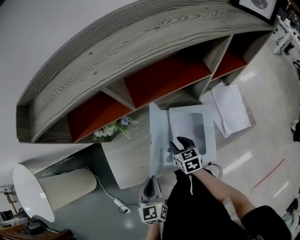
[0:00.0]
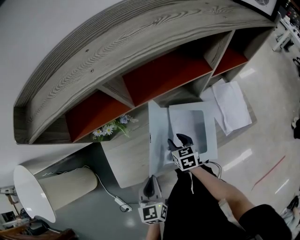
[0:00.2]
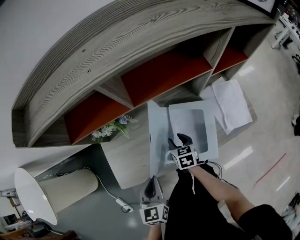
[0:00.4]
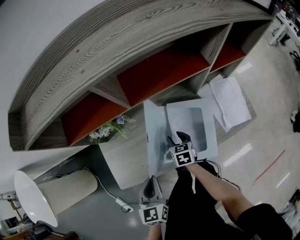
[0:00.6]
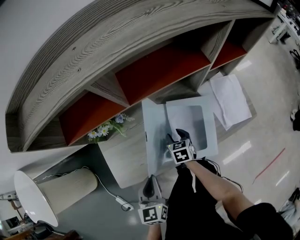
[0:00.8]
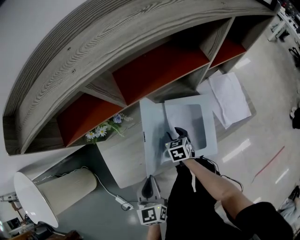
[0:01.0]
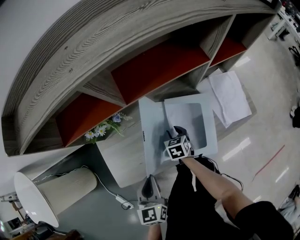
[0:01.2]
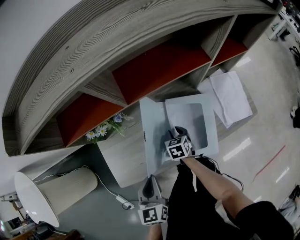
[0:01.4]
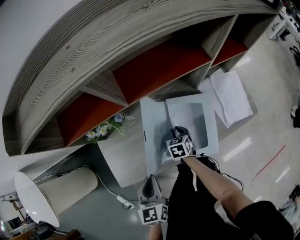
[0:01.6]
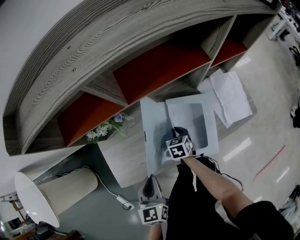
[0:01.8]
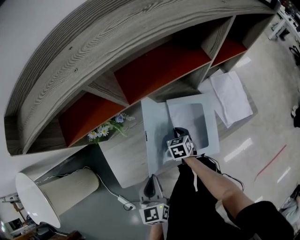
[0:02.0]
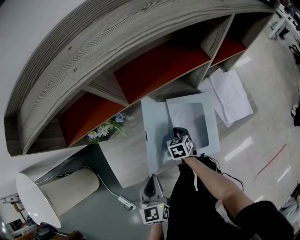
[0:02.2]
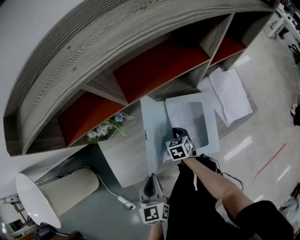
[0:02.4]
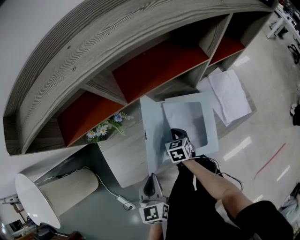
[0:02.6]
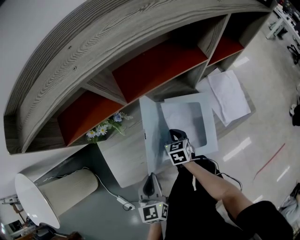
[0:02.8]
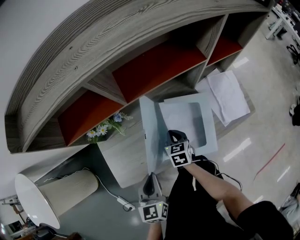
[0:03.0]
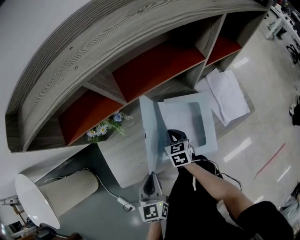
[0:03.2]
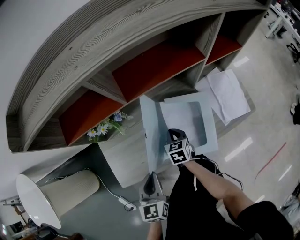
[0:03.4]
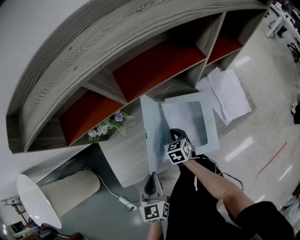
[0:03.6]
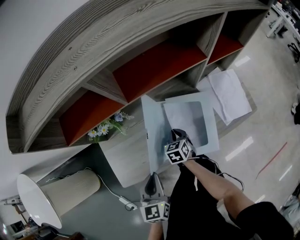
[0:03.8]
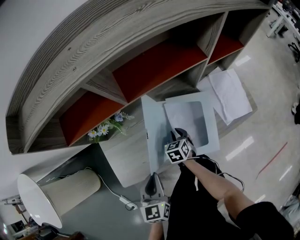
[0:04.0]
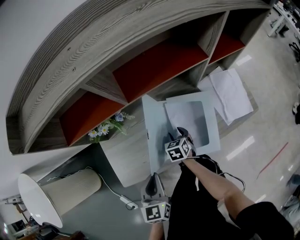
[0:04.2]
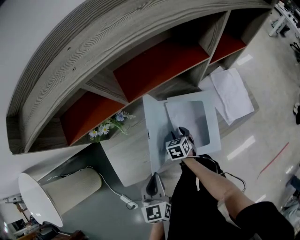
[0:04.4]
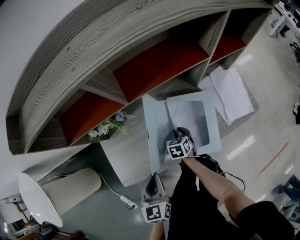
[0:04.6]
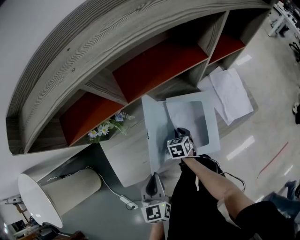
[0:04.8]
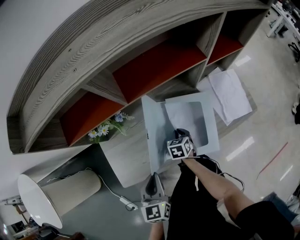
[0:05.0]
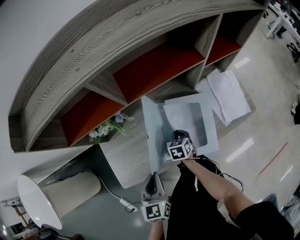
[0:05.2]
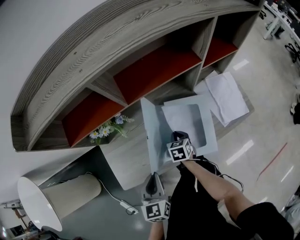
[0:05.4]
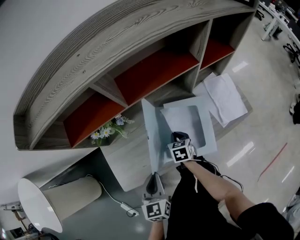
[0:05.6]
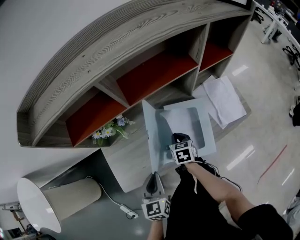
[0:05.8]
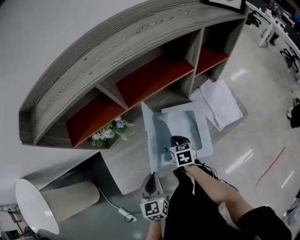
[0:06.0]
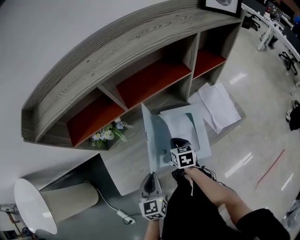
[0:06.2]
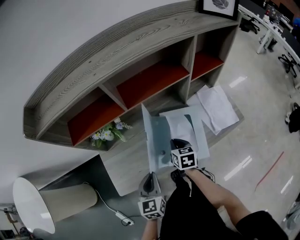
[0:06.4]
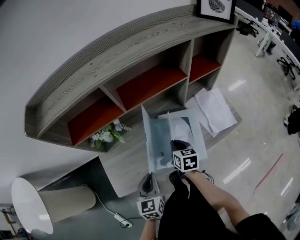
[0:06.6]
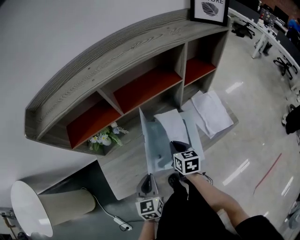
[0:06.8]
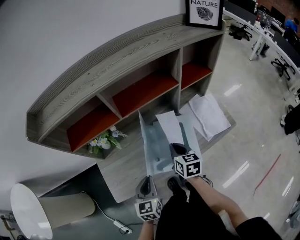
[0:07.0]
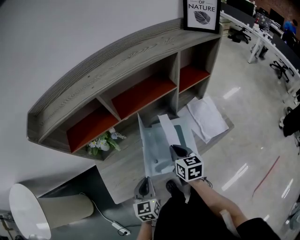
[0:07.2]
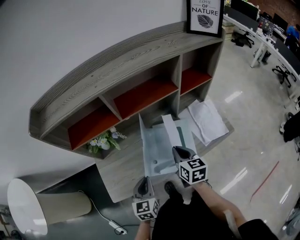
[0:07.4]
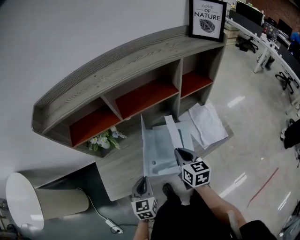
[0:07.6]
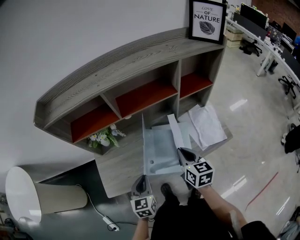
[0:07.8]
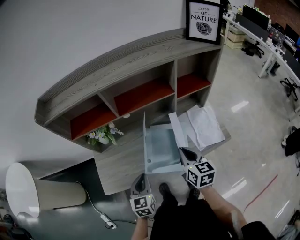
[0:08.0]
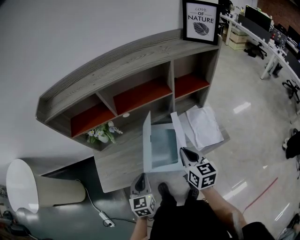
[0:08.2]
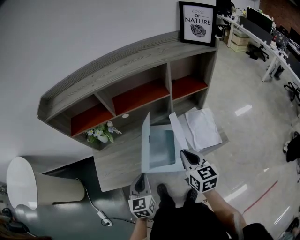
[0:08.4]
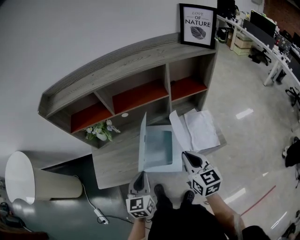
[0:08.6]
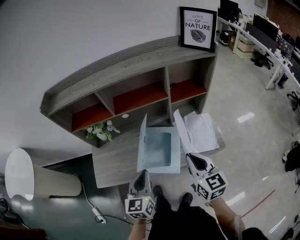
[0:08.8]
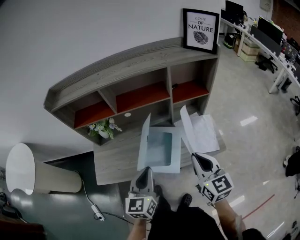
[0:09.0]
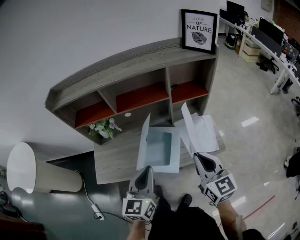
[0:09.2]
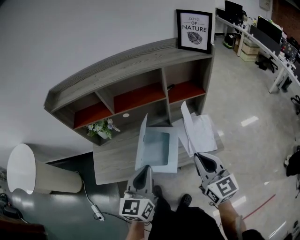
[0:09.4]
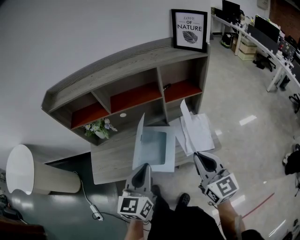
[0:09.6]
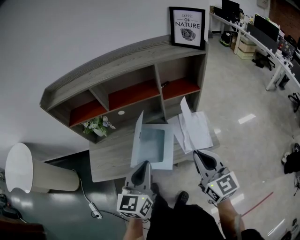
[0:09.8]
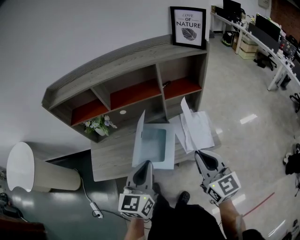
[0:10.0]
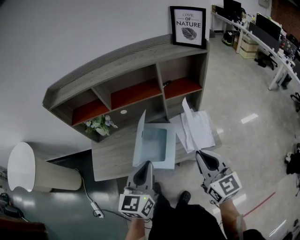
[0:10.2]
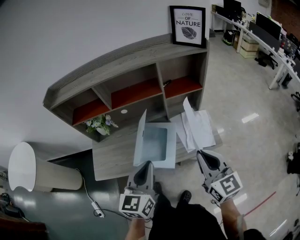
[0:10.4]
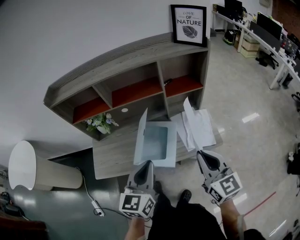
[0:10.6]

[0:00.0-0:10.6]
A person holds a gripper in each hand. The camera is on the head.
0:00.0 to 0:01.6: The right gripper moves downward, about 10 cm.
0:01.6 to 0:03.0: The right gripper goes some 5 cm upward.
0:03.0 to 0:04.6: The right gripper goes some 5 cm downward, and opens, then closes again.
0:04.6 to 0:06.0: The right gripper moves upward, approximately 10 cm.
0:06.0 to 0:07.6: The right gripper travels upward and to the right by approximately 20 cm, and turns by about 20 degrees.
0:07.6 to 0:09.0: The left gripper heads to the right and upward, covering some 20 cm. The right gripper goes roughly 20 cm to the right, upward and backward, and changes its angle by some 20 degrees.
0:09.0 to 0:10.6: The right gripper moves about 5 cm. Meanwhile the left gripper travels to the right by approximately 5 cm.

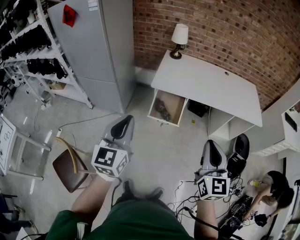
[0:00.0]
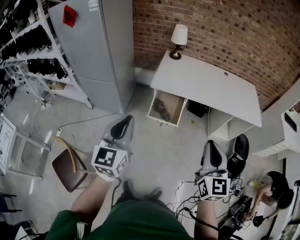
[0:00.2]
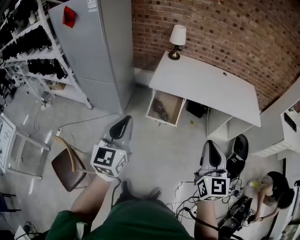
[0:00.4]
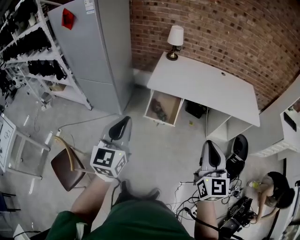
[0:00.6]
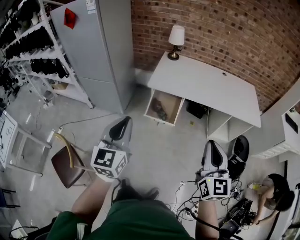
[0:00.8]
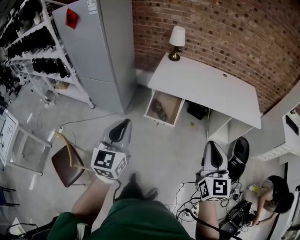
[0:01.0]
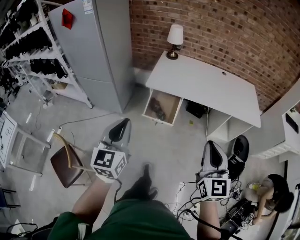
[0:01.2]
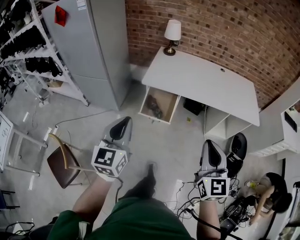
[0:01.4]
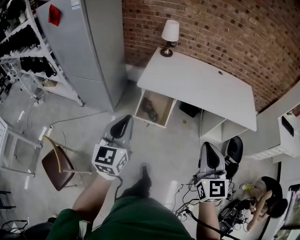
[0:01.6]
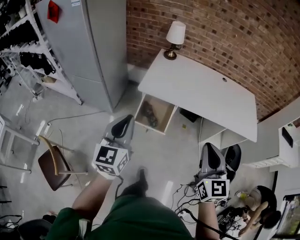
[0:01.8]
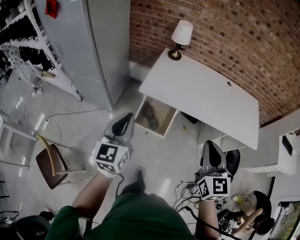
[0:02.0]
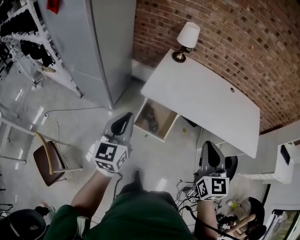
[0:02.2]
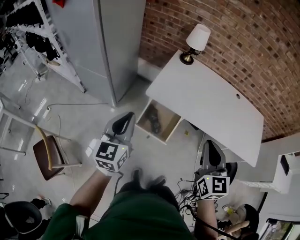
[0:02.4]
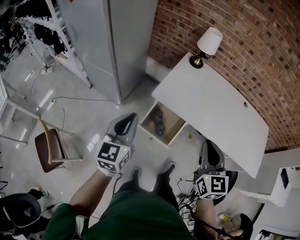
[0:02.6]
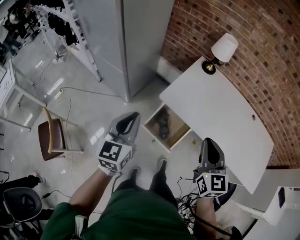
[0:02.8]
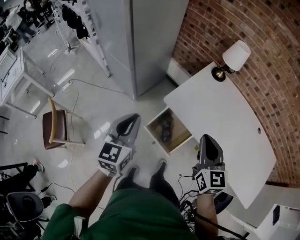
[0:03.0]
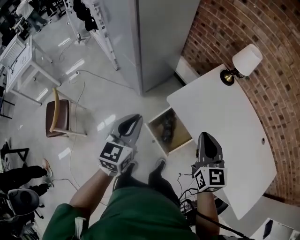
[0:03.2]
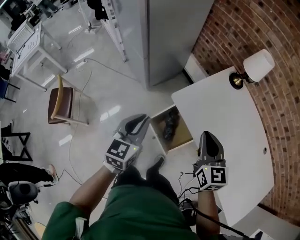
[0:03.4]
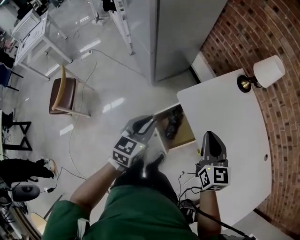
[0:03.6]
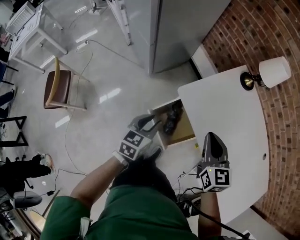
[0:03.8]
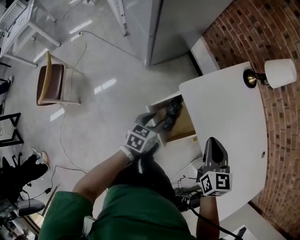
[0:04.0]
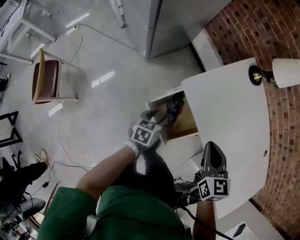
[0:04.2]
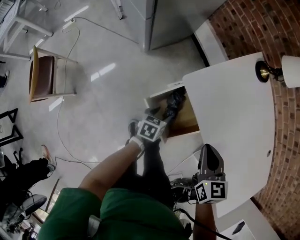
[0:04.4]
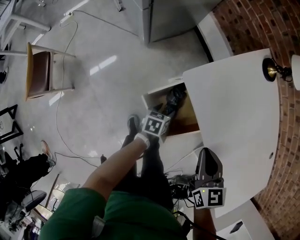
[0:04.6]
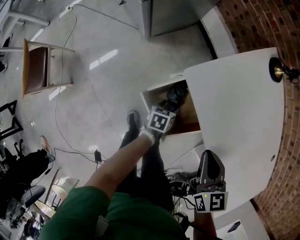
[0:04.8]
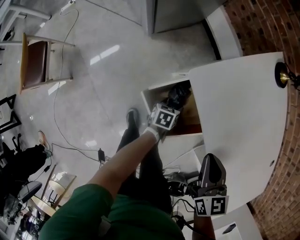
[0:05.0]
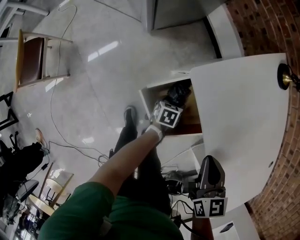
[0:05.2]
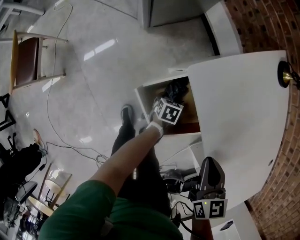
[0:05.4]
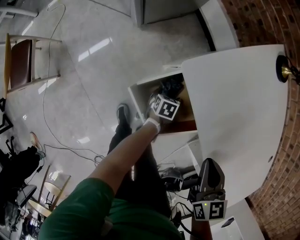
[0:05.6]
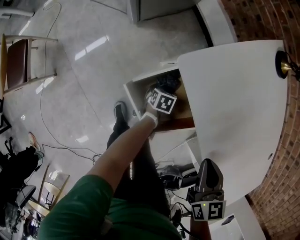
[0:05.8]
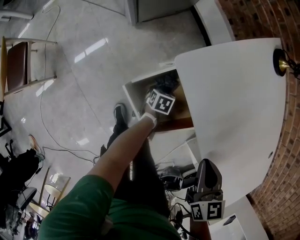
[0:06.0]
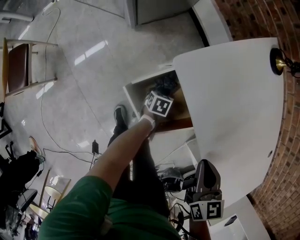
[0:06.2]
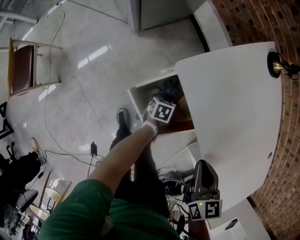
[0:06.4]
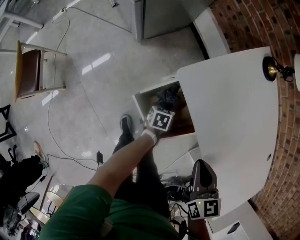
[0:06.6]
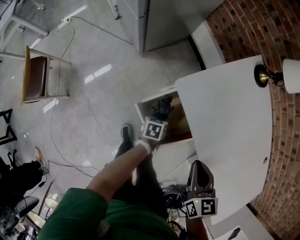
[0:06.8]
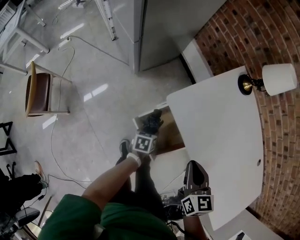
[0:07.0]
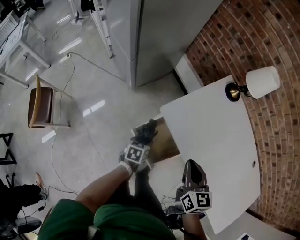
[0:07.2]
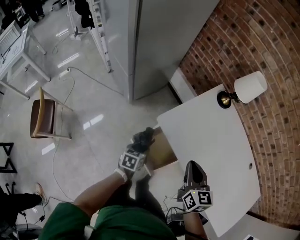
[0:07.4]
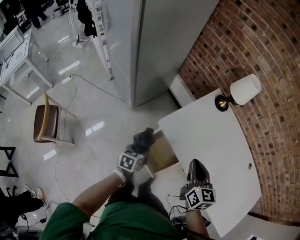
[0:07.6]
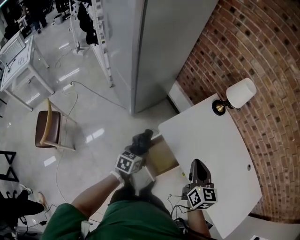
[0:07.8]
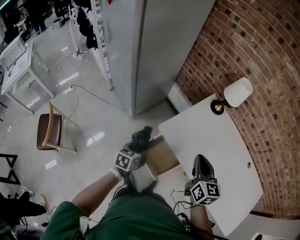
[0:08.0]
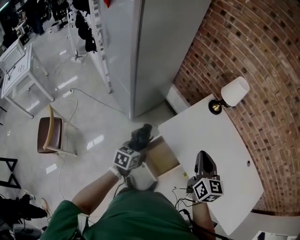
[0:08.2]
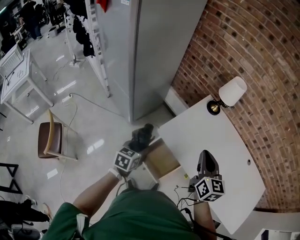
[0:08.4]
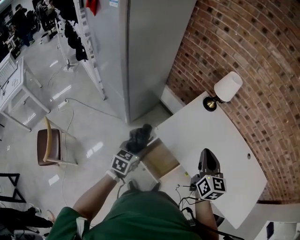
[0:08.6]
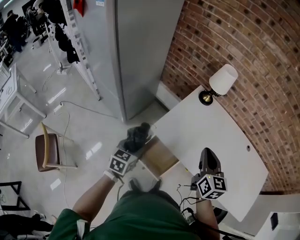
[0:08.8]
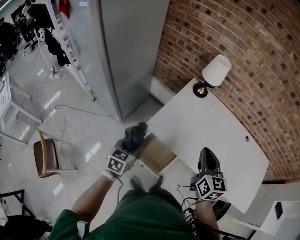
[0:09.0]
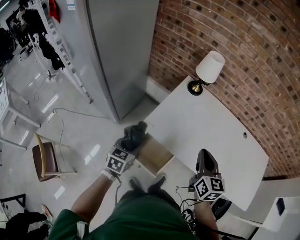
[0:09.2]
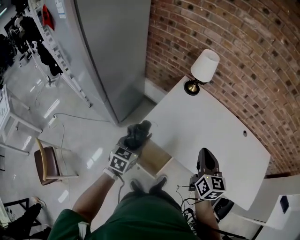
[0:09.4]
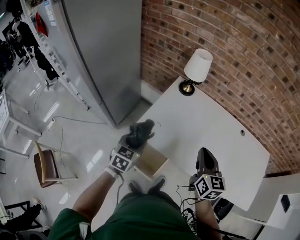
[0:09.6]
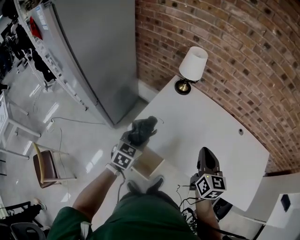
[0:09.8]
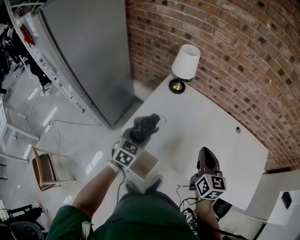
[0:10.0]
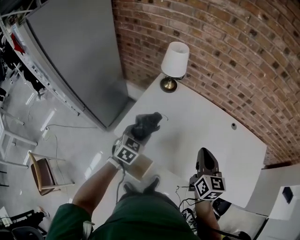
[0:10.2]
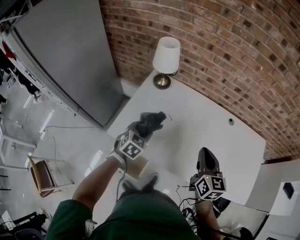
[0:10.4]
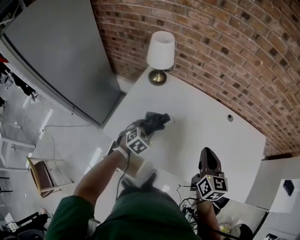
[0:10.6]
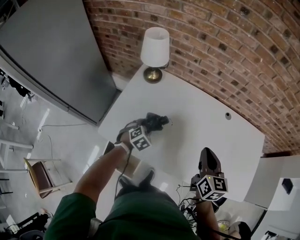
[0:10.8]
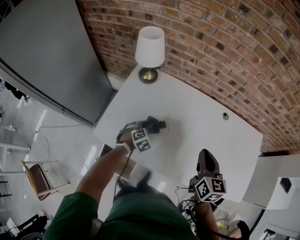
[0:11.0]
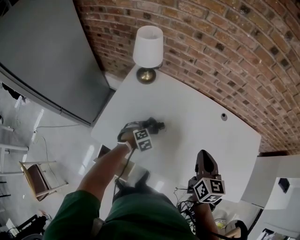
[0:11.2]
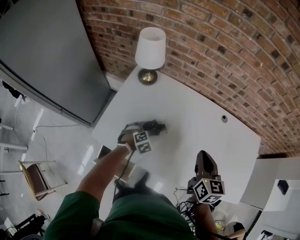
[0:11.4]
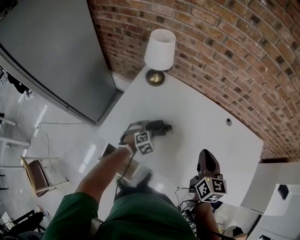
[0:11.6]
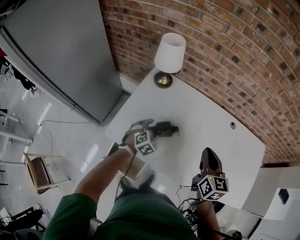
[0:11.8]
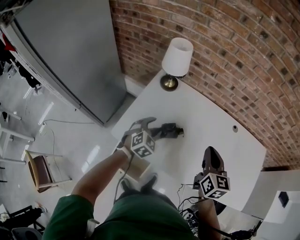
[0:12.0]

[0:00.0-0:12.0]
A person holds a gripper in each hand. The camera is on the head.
0:00.0 to 0:01.6: The two grippers go roughly 10 cm to the right and forward.
0:01.6 to 0:03.0: The right gripper moves some 40 cm, and turns by about 30 degrees; the left gripper shifts by some 30 cm, and turns by roughly 30 degrees.
0:03.0 to 0:04.4: The right gripper is displaced downward by about 20 cm, and swivels about 30 degrees. The left gripper travels downward by roughly 40 cm, tilts its fingers approximately 30 degrees downward, and opens.
0:04.4 to 0:06.0: The right gripper heads downward and to the right, covering about 10 cm. Meanwhile the left gripper shifts approximately 25 cm downward.
0:06.0 to 0:07.6: The right gripper goes roughly 25 cm upward, and turns by approximately 20 degrees; the left gripper shifts about 40 cm upward, and swivels some 20 degrees.
0:07.6 to 0:09.0: The right gripper heads upward and to the right, covering roughly 10 cm. Meanwhile the left gripper travels upward by approximately 15 cm, and changes its angle by approximately 30 degrees.
0:09.0 to 0:10.4: The right gripper is displaced to the right by roughly 25 cm, while the left gripper goes approximately 35 cm to the right and forward, and rotates approximately 30 degrees.
0:10.4 to 0:12.0: The right gripper travels to the right and back again, approximately 5 cm each way, while the left gripper goes downward and returns, about 20 cm each way.

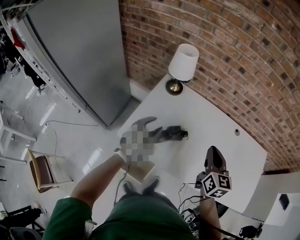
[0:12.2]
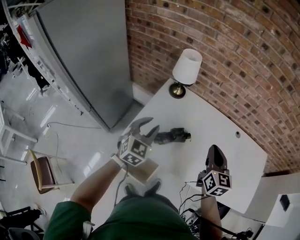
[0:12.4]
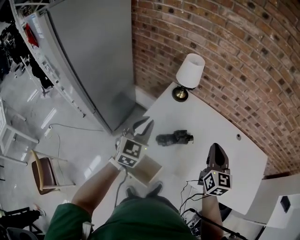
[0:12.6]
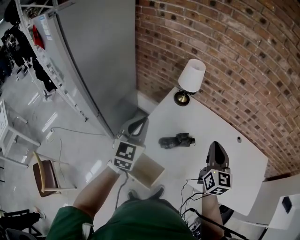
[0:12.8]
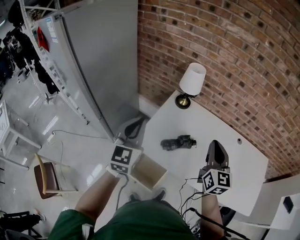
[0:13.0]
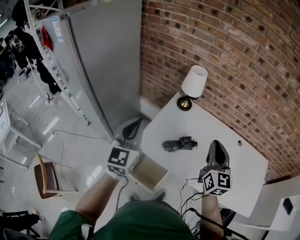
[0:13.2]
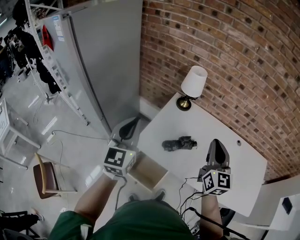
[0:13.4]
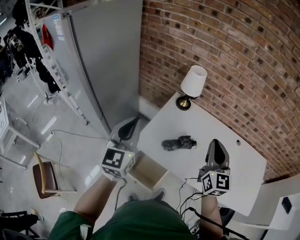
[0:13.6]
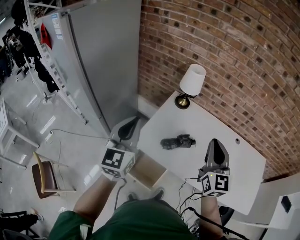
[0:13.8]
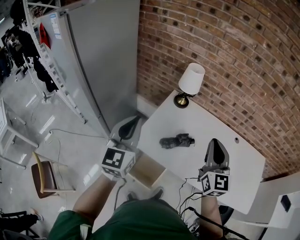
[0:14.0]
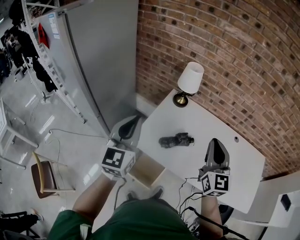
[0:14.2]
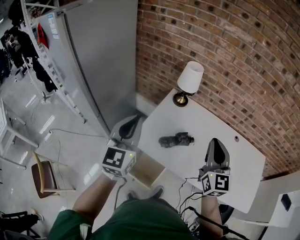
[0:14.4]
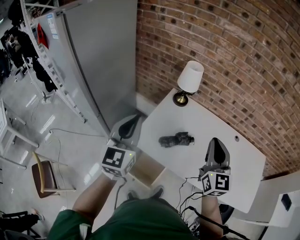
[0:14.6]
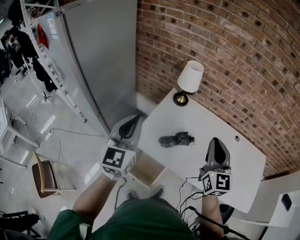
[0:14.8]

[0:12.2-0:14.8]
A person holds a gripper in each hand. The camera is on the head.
0:12.2 to 0:13.4: The right gripper moves upward, to the left and backward, approximately 20 cm, and changes its angle by some 20 degrees. The left gripper is displaced upward, to the left and backward by about 30 cm, tilts its fingers roughly 30 degrees upward, and closes.
0:13.4 to 0:14.8: The grippers make only small movements.
